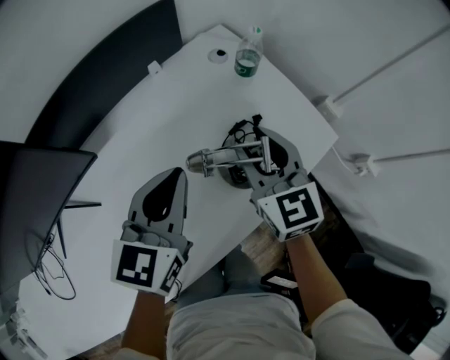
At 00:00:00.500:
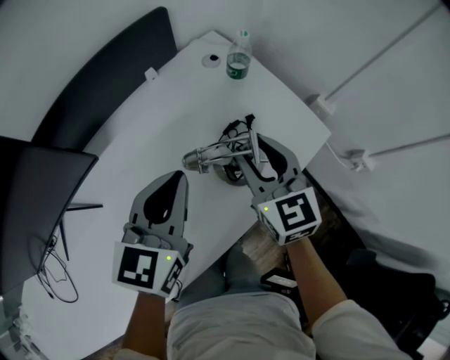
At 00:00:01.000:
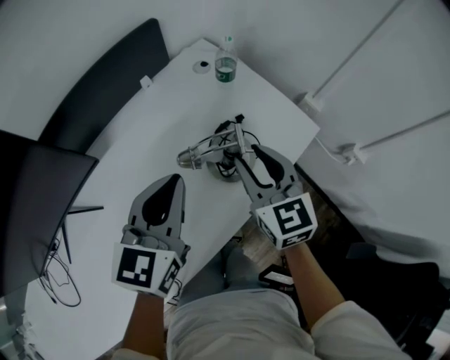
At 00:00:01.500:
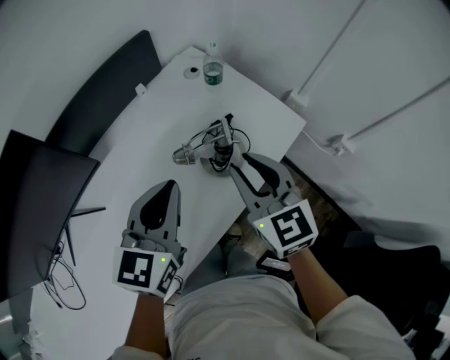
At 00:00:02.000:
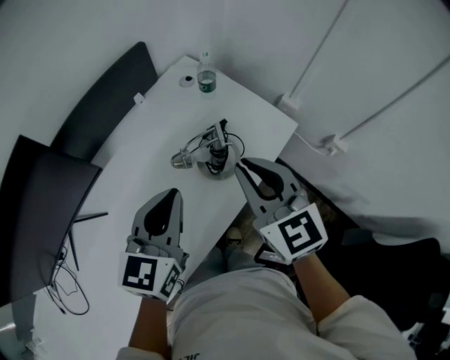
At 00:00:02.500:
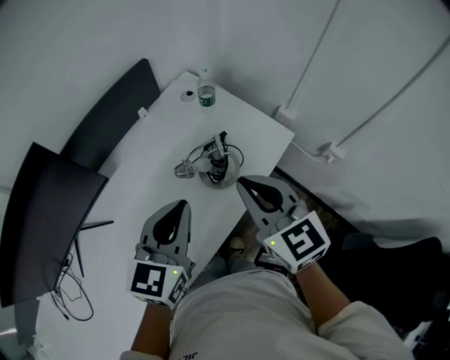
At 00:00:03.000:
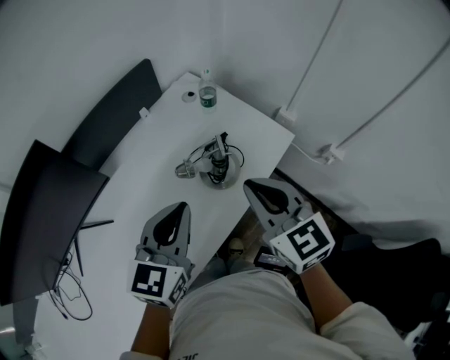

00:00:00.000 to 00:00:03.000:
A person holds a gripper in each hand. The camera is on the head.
00:00:00.000 to 00:00:01.500: The two grippers go roughly 10 cm backward and upward.
00:00:01.500 to 00:00:03.000: The right gripper goes approximately 5 cm upward and backward, and closes its fingers.

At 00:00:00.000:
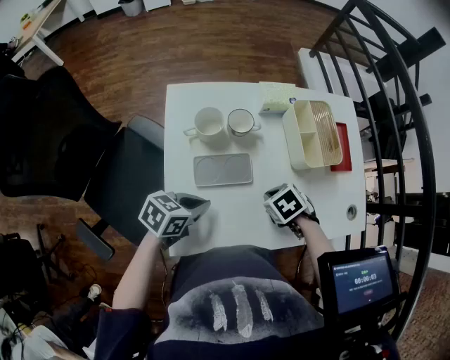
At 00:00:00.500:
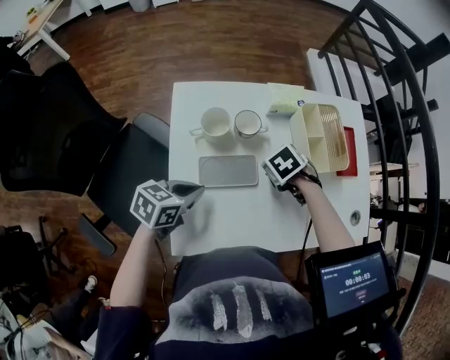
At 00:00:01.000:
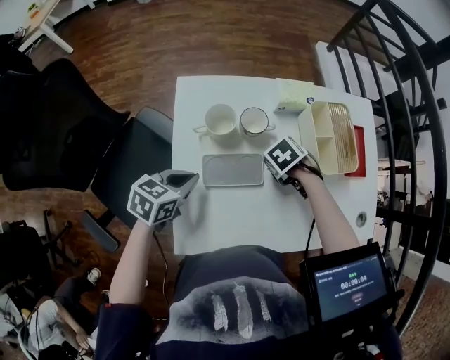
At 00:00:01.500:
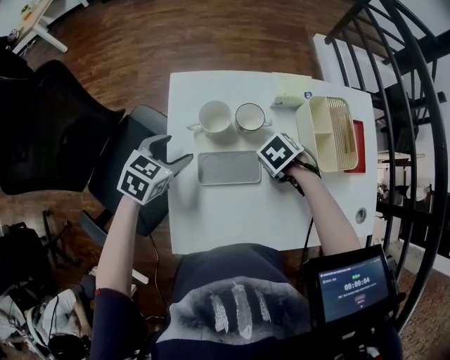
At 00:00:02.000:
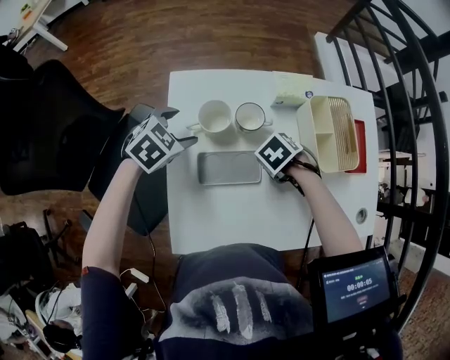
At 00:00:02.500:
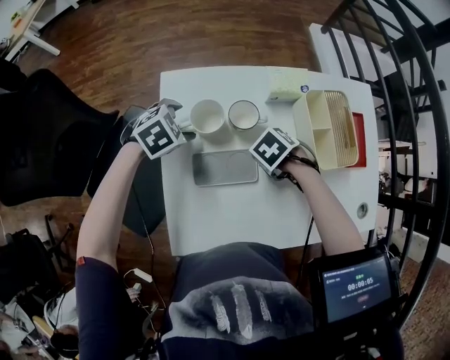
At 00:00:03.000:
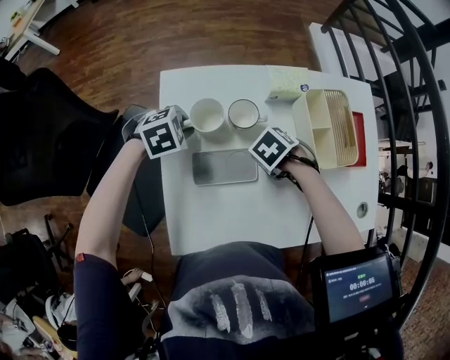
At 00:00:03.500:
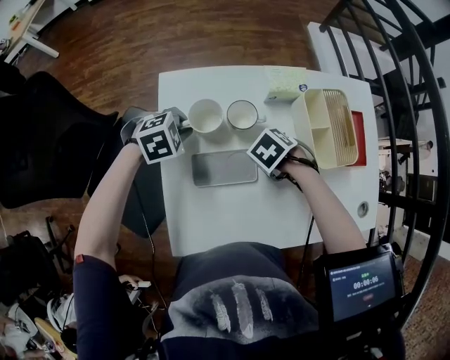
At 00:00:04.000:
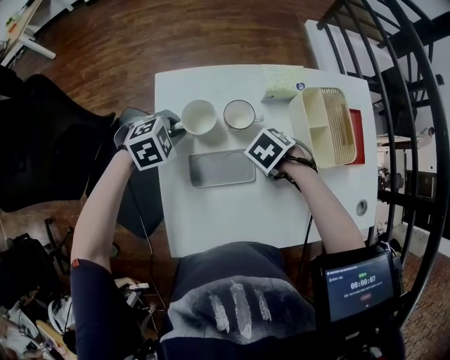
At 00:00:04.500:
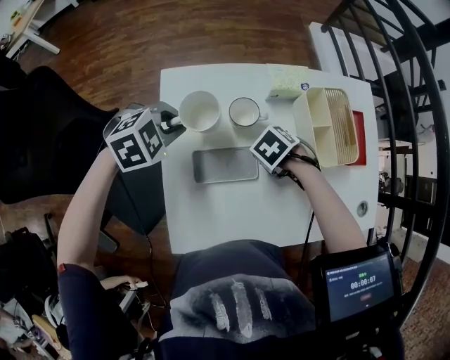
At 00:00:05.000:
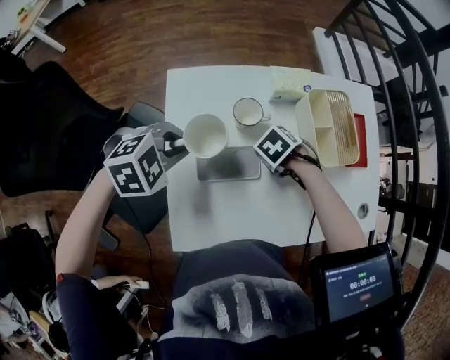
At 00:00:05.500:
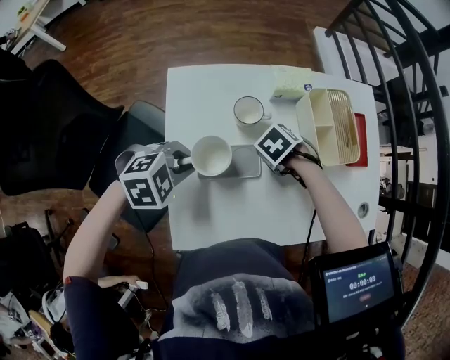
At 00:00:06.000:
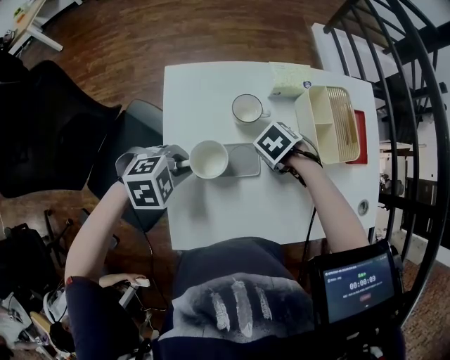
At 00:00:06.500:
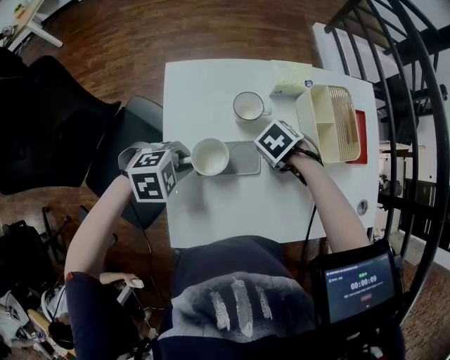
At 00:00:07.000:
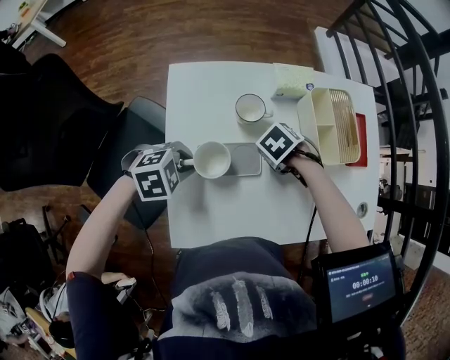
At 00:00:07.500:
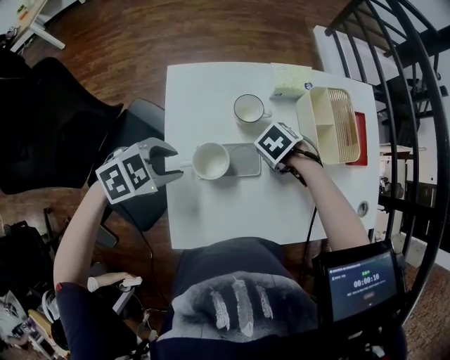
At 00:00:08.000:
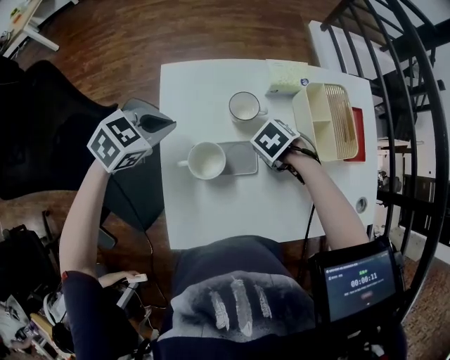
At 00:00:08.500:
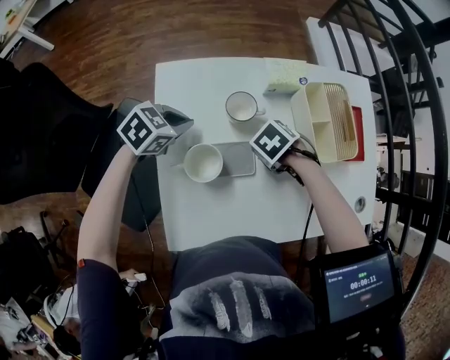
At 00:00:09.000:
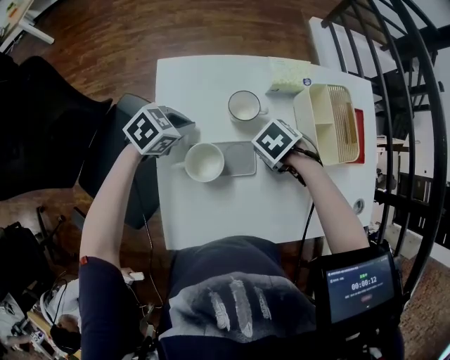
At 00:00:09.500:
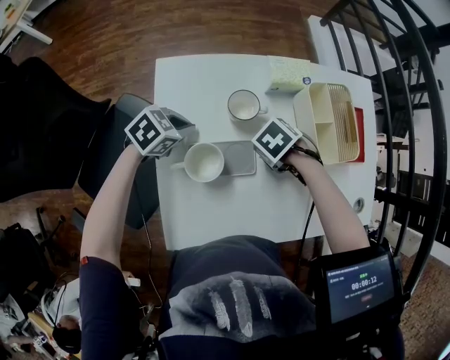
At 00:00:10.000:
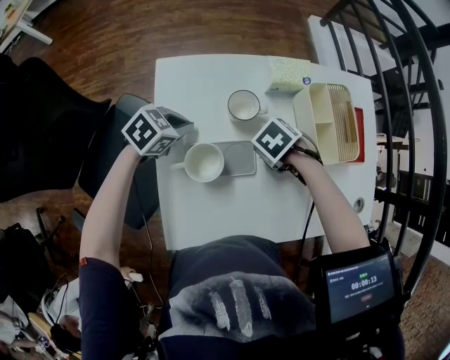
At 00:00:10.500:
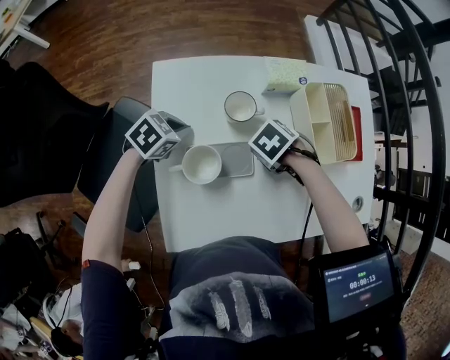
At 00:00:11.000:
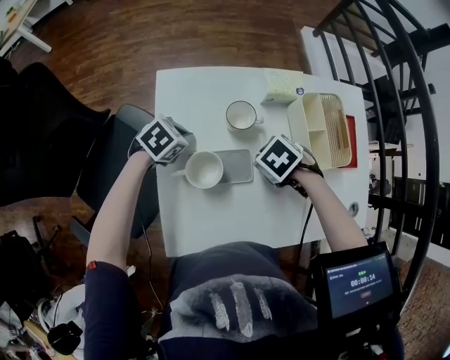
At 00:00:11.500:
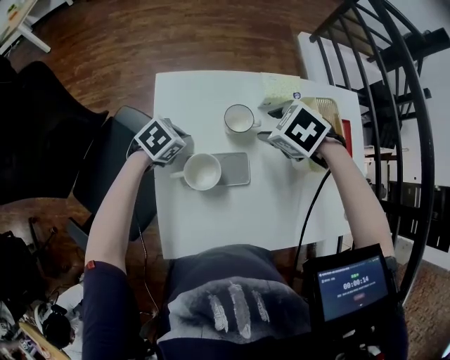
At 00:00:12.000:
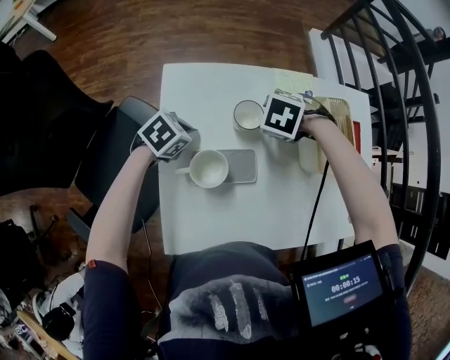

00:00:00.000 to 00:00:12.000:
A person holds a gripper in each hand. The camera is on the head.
00:00:00.000 to 00:00:02.000: The left gripper ends up approximately 20 cm from where it was, rotates about 40 degrees, and opens up.
00:00:02.000 to 00:00:04.000: The left gripper swivels about 20 degrees, and closes up.
00:00:04.000 to 00:00:06.000: The left gripper moves some 10 cm upward and comes back.
00:00:06.000 to 00:00:08.000: The left gripper changes place by roughly 10 cm, turns by approximately 30 degrees, and opens, then closes once more.
00:00:08.000 to 00:00:10.000: The left gripper is displaced downward by approximately 10 cm.

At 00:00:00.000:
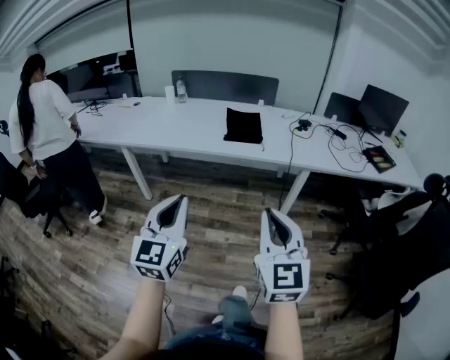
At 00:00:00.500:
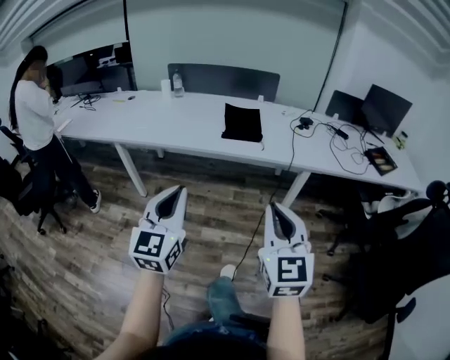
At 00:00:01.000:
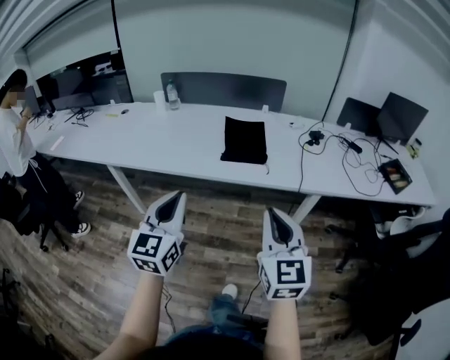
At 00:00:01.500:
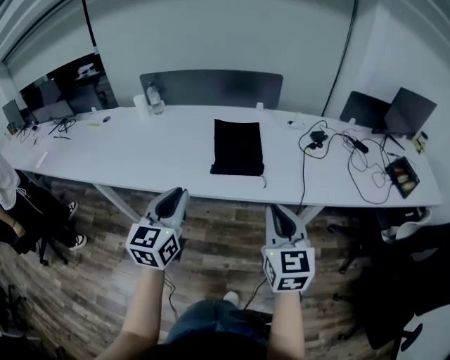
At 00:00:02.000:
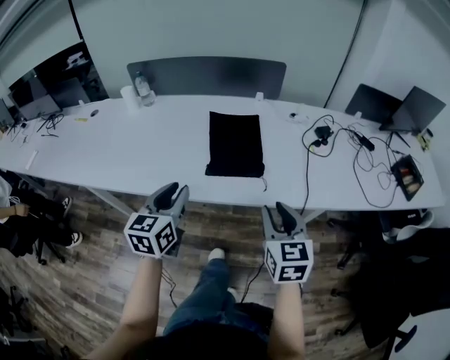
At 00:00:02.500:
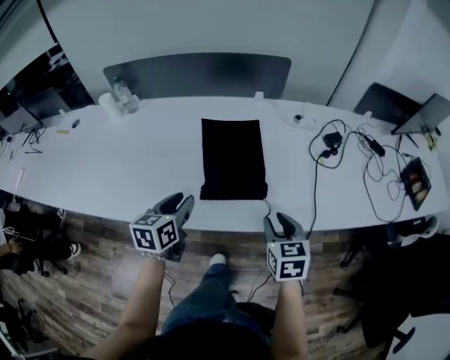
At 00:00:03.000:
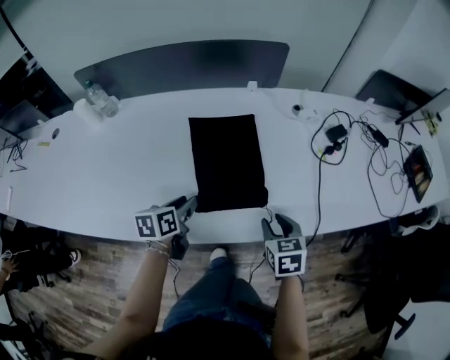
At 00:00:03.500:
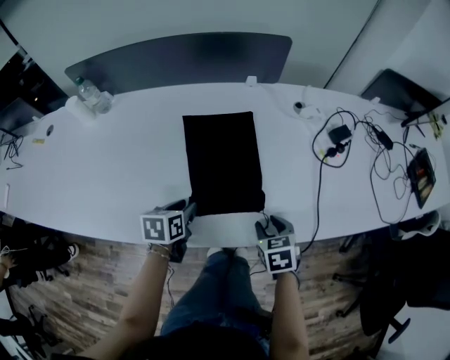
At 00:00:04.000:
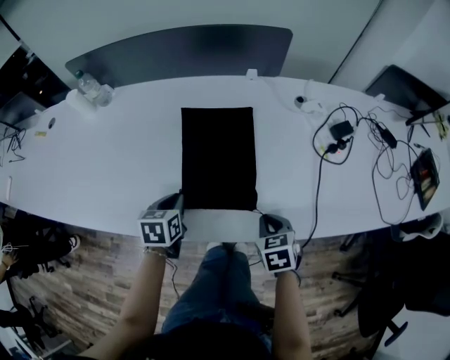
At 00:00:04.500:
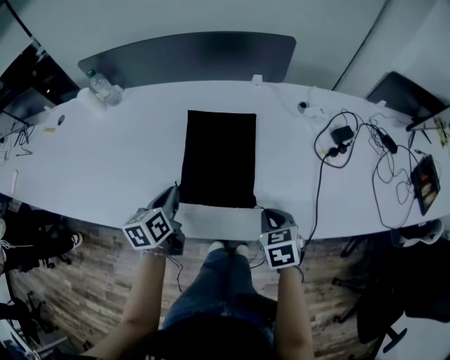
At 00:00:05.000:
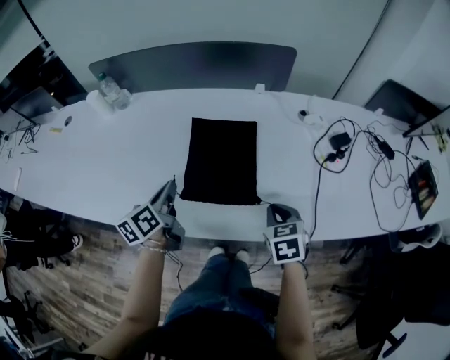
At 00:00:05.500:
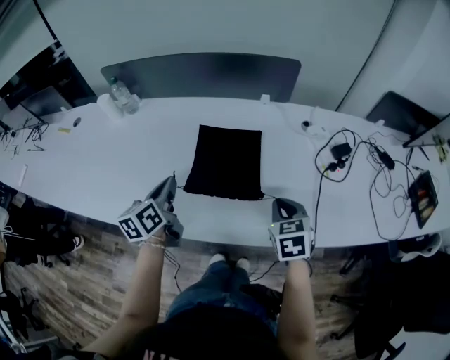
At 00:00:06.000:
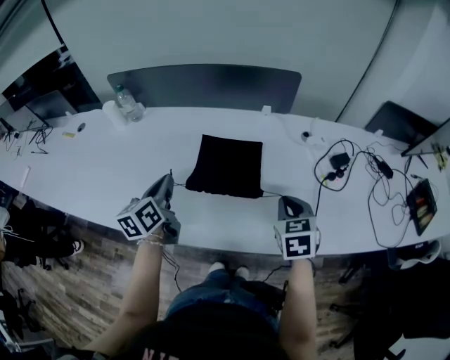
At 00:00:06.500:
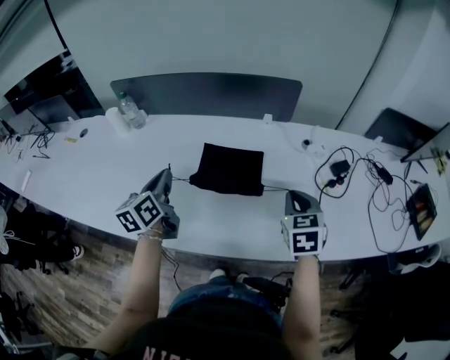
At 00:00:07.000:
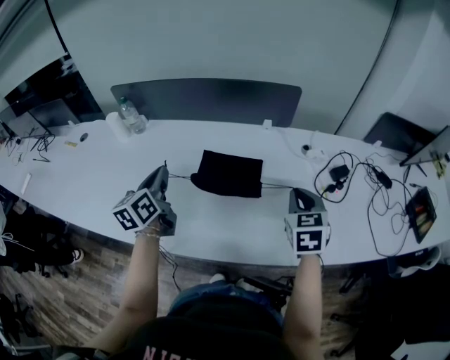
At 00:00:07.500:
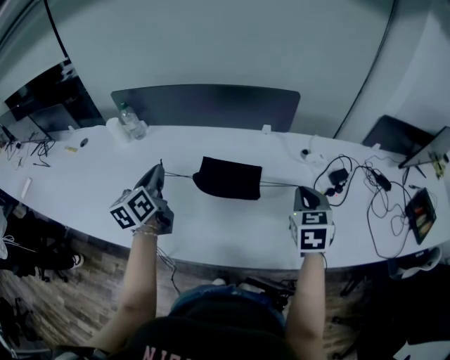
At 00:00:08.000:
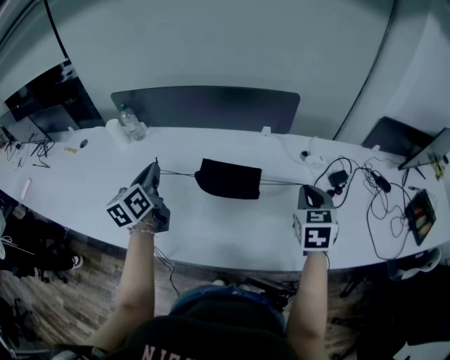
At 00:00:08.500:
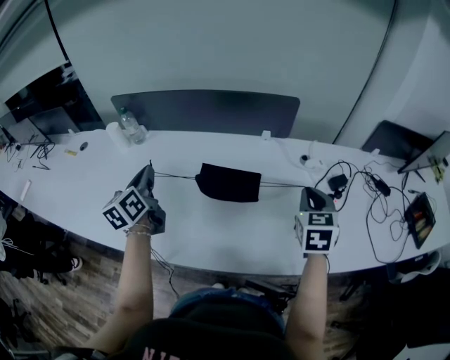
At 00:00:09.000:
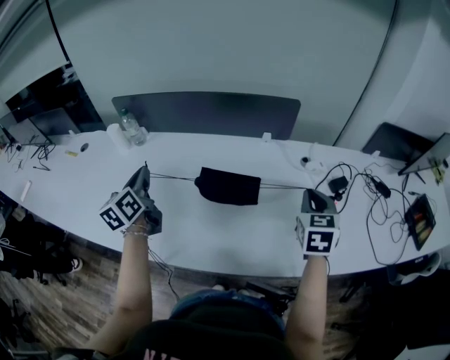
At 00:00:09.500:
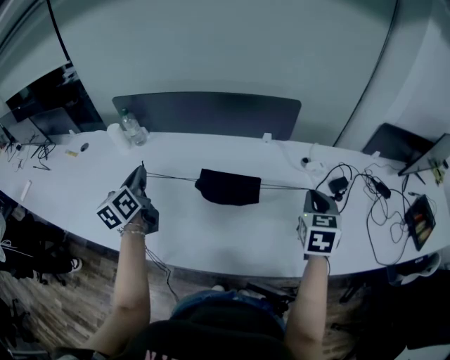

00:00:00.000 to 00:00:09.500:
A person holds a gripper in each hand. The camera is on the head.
00:00:00.000 to 00:00:02.000: The pair of grippers is taken forward, roughly 50 cm. The right gripper swivels some 20 degrees, and opens its fingers; the left gripper changes its angle by about 20 degrees, and opens its fingers.
00:00:02.000 to 00:00:04.000: Both grippers move downward and forward, roughly 30 cm. The right gripper angles its fingers downward, by some 30 degrees, and closes up. Meanwhile the left gripper tips its fingers downward by about 30 degrees.
00:00:04.000 to 00:00:05.500: The left gripper goes some 15 cm upward, and changes its angle by roughly 40 degrees, while the right gripper shifts some 10 cm upward and forward.
00:00:05.500 to 00:00:07.500: The right gripper shifts about 15 cm upward and forward. Meanwhile the left gripper goes roughly 10 cm upward, forward and to the left.
00:00:07.500 to 00:00:09.500: The left gripper shifts roughly 5 cm to the left.

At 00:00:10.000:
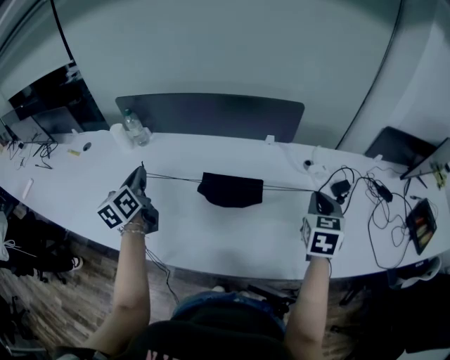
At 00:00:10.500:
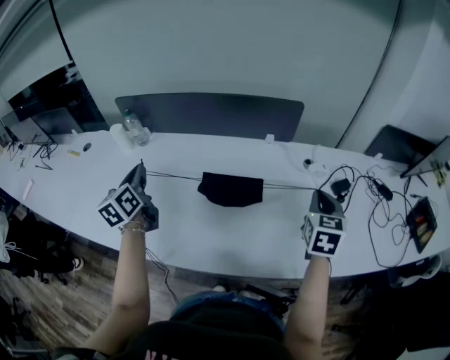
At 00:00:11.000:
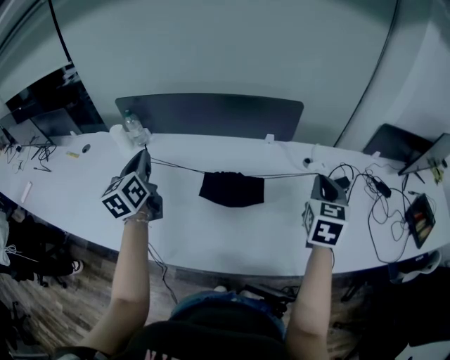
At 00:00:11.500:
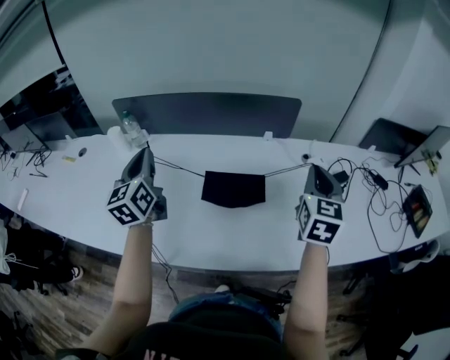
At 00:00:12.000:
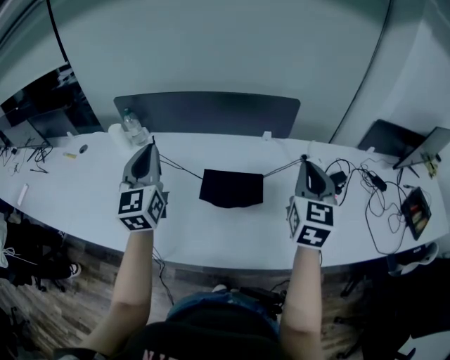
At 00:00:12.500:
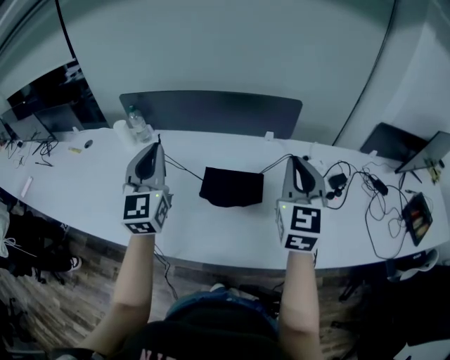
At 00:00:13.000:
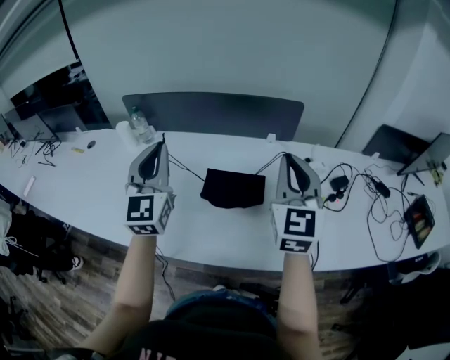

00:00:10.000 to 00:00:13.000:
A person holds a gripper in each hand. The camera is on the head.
00:00:10.000 to 00:00:11.500: The left gripper moves upward, about 5 cm, while the right gripper shifts roughly 10 cm upward and to the left.
00:00:11.500 to 00:00:13.000: The left gripper goes some 10 cm to the right, upward and backward, and swivels approximately 30 degrees; the right gripper moves to the left and upward, some 10 cm, and turns by about 20 degrees.
